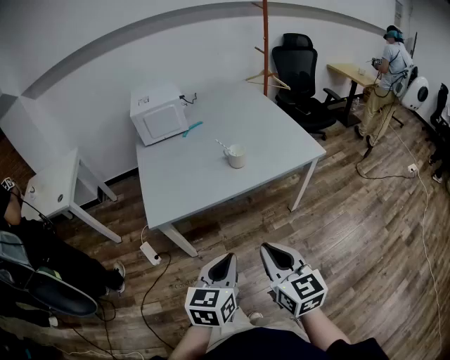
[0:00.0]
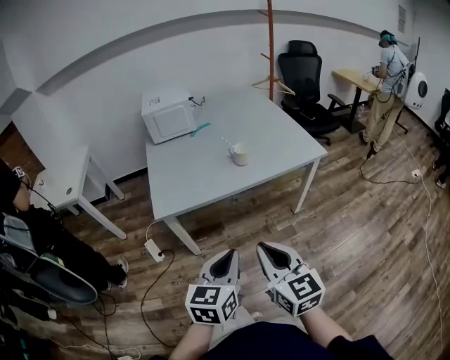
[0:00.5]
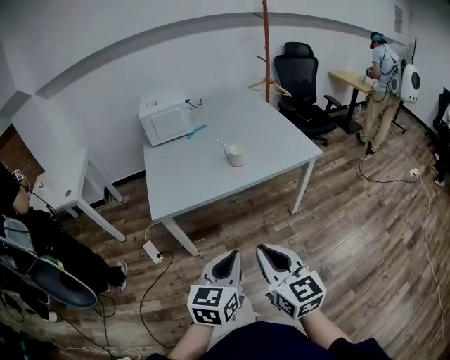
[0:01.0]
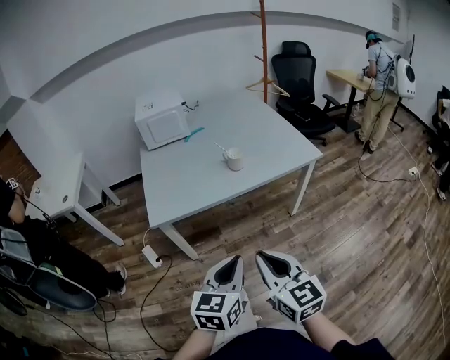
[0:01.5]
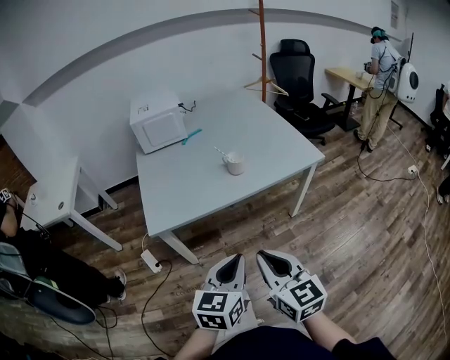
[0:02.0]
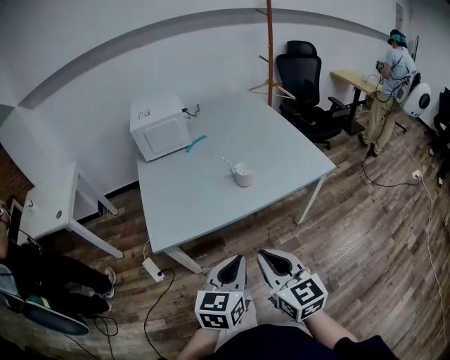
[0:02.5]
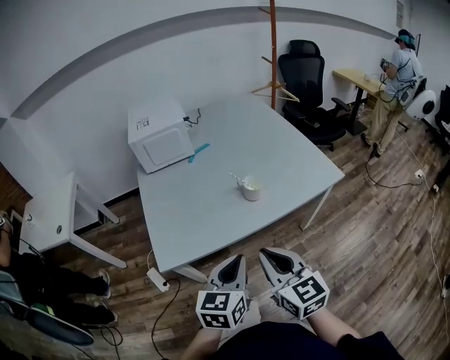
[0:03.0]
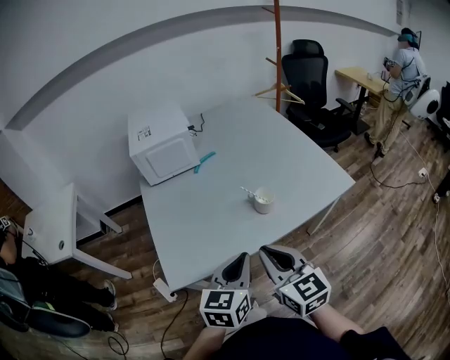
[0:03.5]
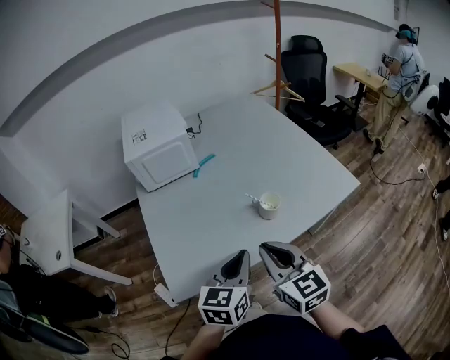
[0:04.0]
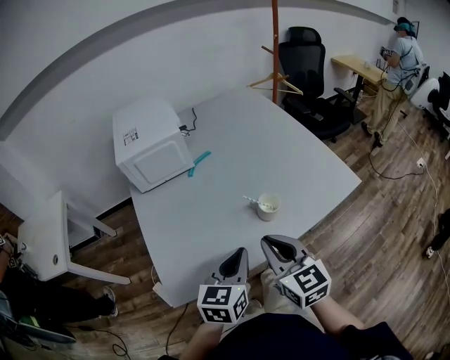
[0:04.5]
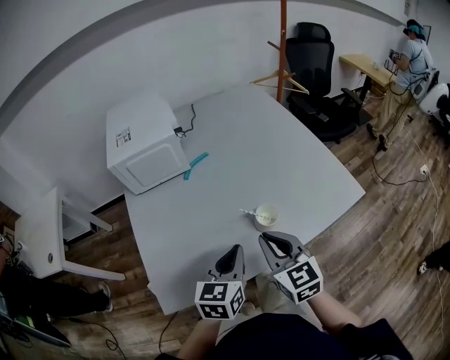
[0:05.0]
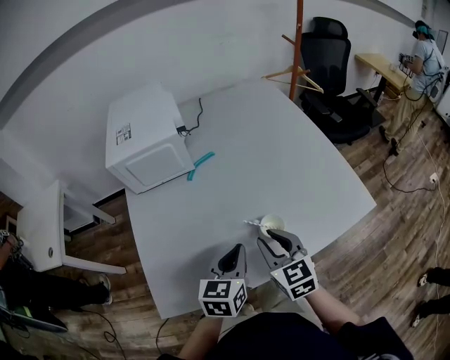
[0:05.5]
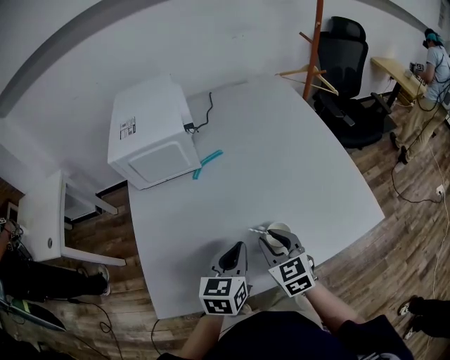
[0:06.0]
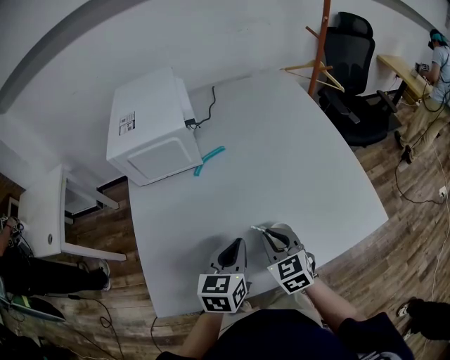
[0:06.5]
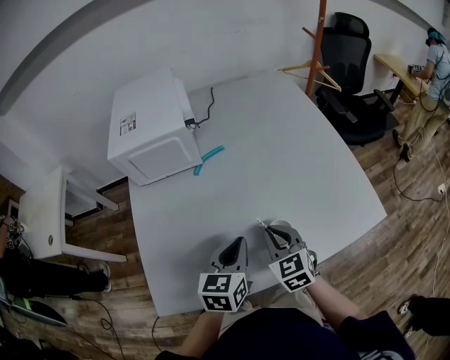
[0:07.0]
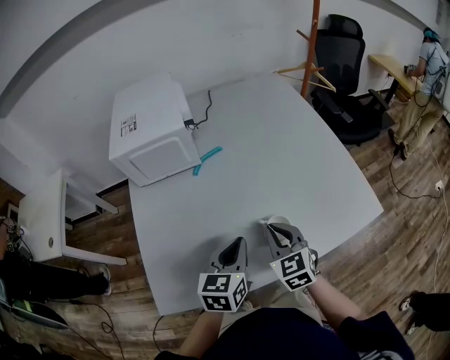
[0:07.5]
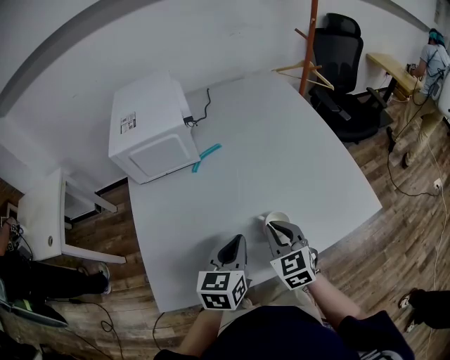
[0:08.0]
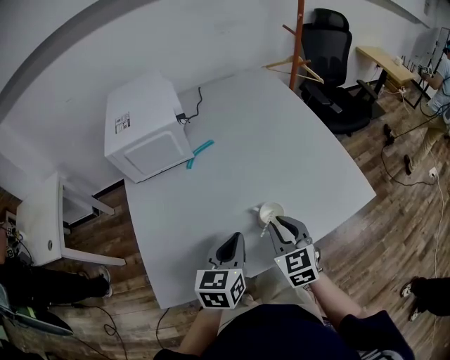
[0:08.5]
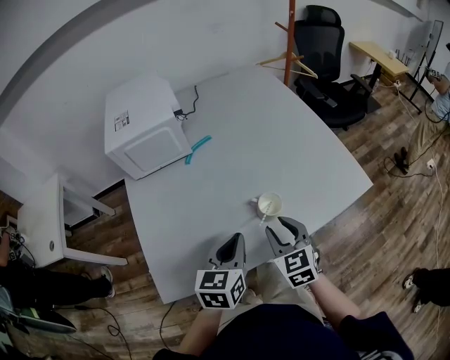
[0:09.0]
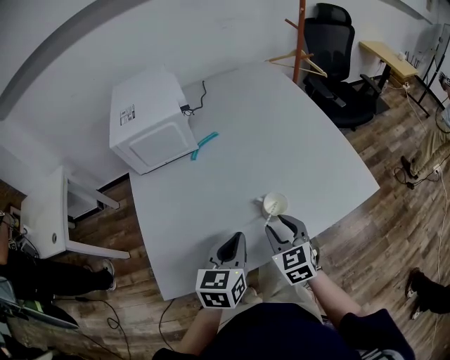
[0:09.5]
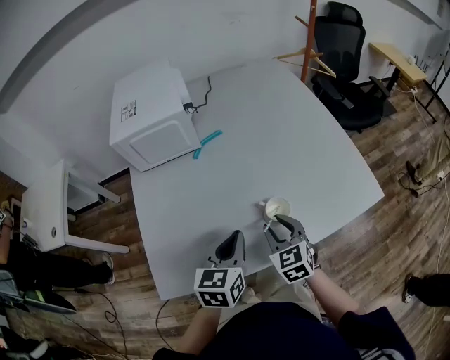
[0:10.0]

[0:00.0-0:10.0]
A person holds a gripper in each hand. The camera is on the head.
0:02.0 to 0:04.0: The grippers both shift forward by some 30 cm.
0:04.0 to 0:06.0: Both grippers travel together forward and downward, approximately 20 cm. The right gripper turns by approximately 20 degrees.
0:06.0 to 0:08.0: There are only small adjustments of the grippers.
0:08.0 to 0:10.0: The right gripper opens up.

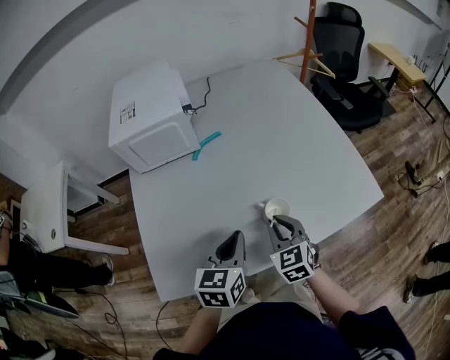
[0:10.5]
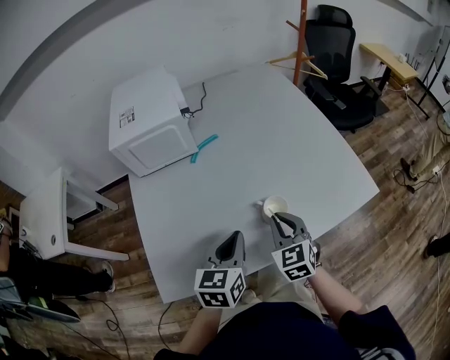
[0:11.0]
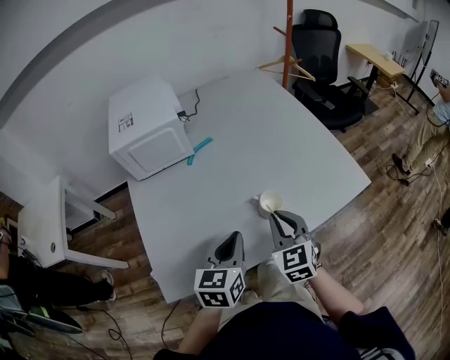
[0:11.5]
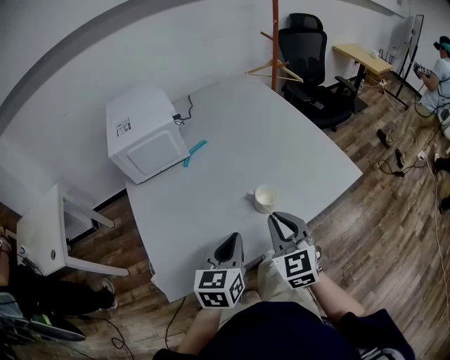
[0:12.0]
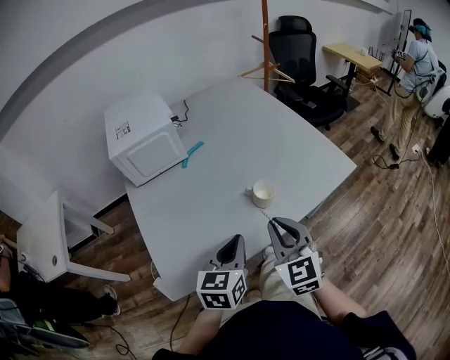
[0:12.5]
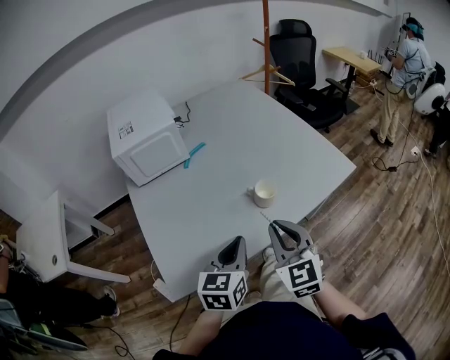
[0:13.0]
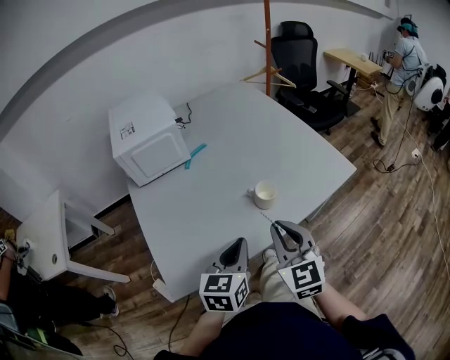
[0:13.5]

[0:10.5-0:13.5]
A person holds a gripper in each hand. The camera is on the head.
0:10.5 to 0:12.0: The left gripper moves backward, some 5 cm; the right gripper moves upward and backward, roughly 15 cm.
0:12.0 to 0:13.5: The right gripper heads backward, covering about 5 cm.

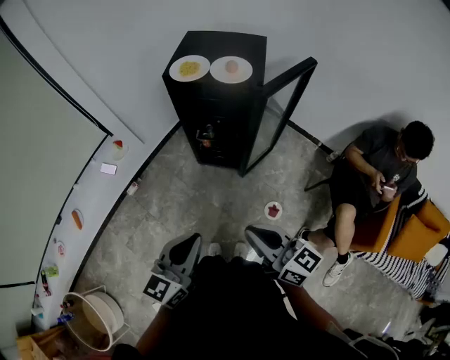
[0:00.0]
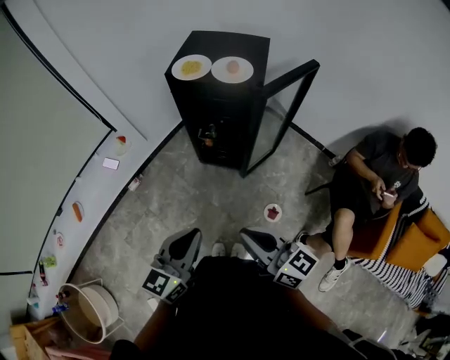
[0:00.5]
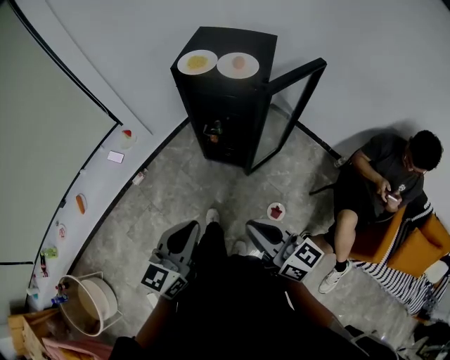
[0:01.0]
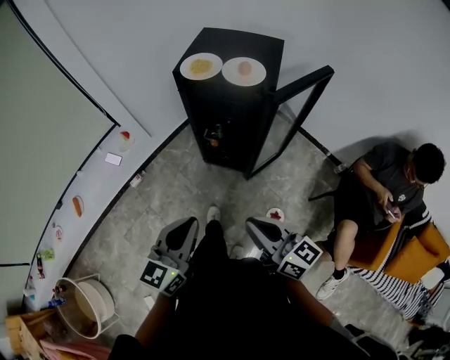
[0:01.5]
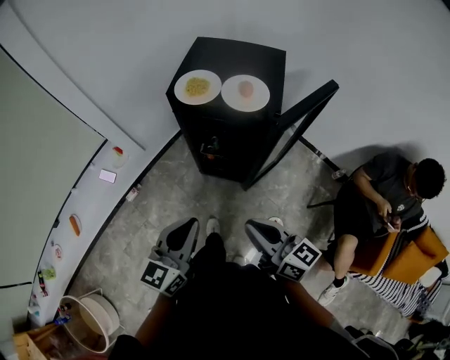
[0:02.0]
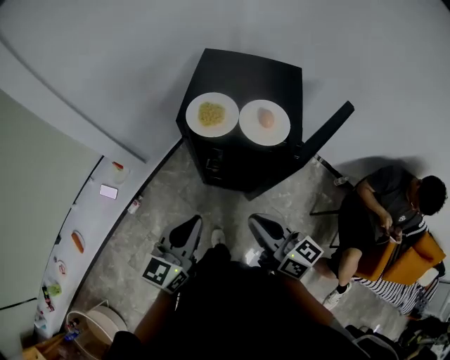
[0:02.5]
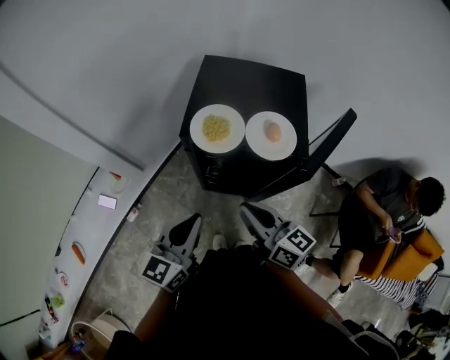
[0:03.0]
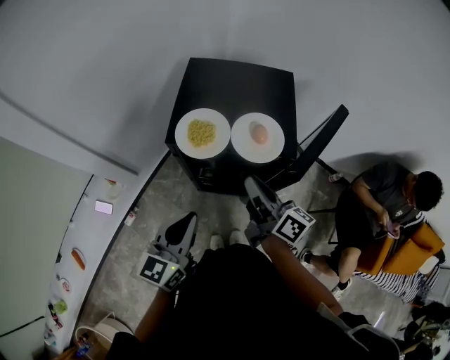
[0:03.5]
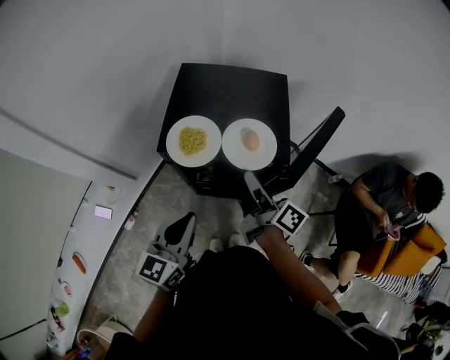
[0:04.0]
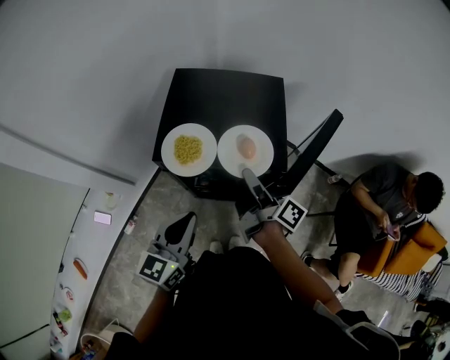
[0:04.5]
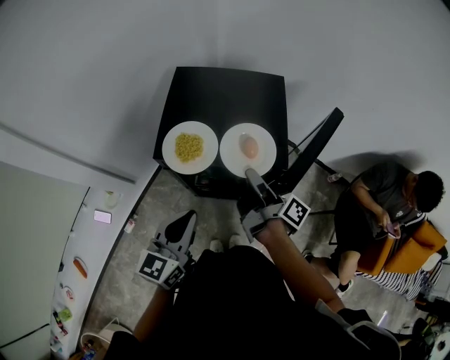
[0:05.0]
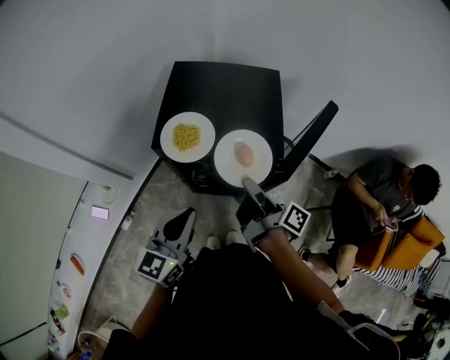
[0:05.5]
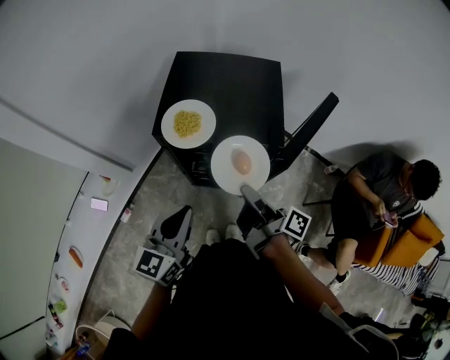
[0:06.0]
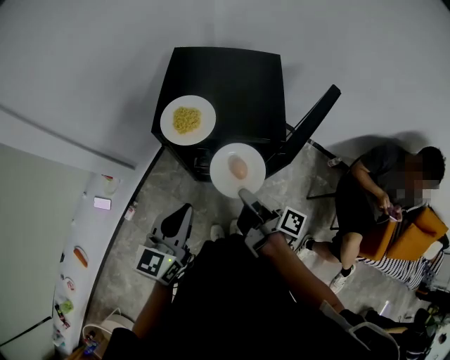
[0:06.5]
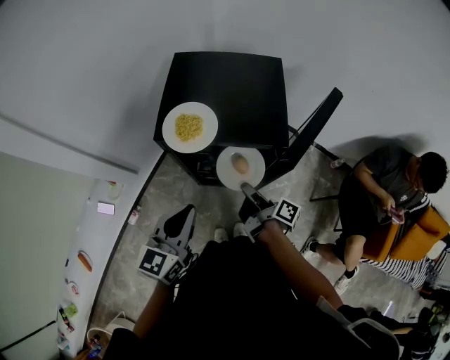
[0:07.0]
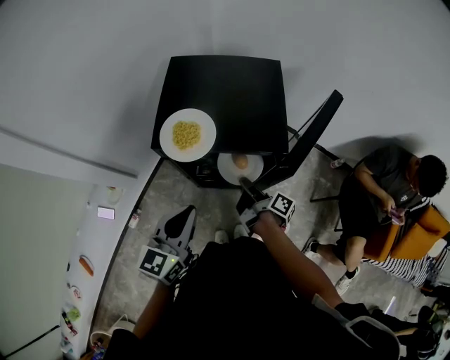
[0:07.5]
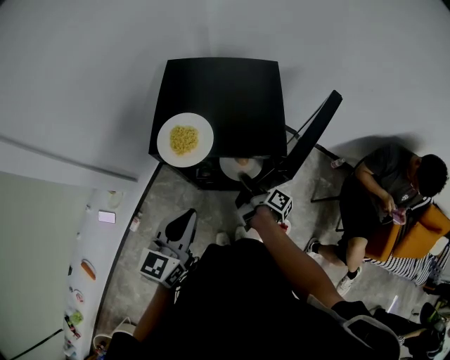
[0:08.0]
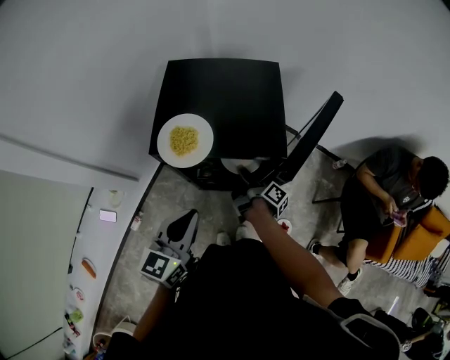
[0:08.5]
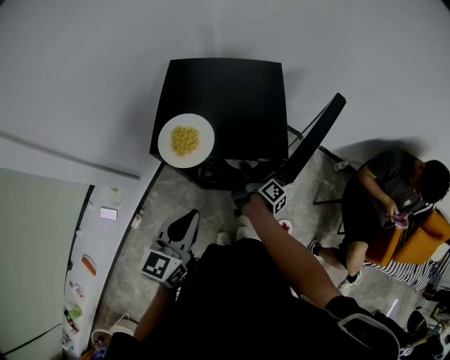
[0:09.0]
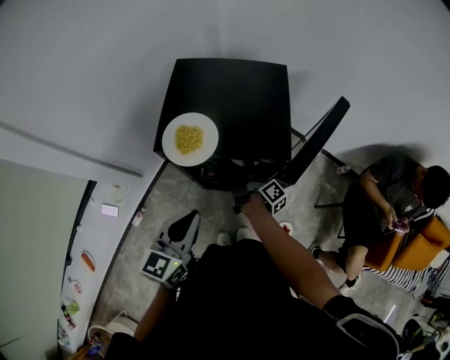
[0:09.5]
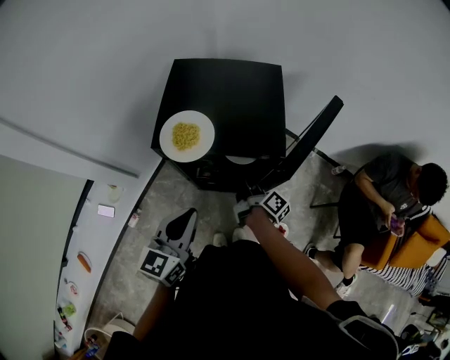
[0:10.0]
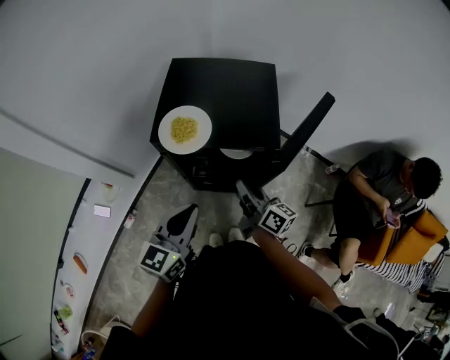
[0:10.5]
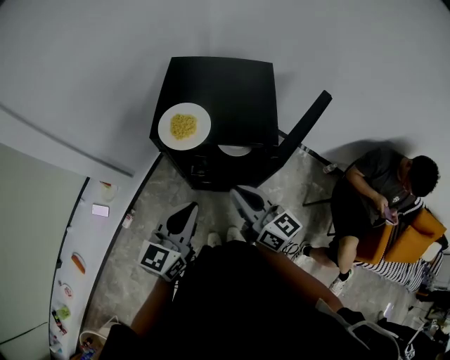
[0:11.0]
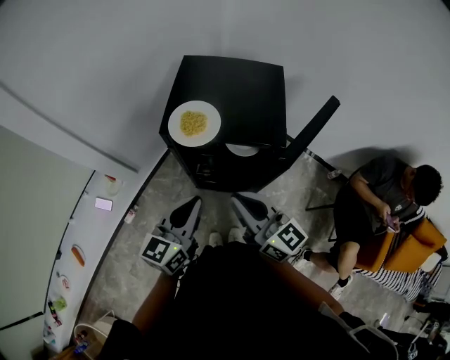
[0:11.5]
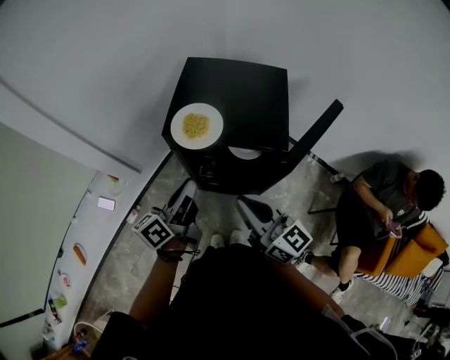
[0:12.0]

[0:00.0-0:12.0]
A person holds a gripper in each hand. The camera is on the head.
0:00.0 to 0:02.0: The grippers both shift forward by roughly 15 cm.
0:02.0 to 0:04.0: The two grippers go about 25 cm forward. The right gripper turns by about 50 degrees.
0:04.0 to 0:06.0: The right gripper goes some 10 cm backward, and turns by approximately 20 degrees.
0:06.0 to 0:08.0: The right gripper travels downward and forward by approximately 20 cm.
0:08.0 to 0:10.0: The grippers move only a little.
0:10.0 to 0:12.0: The left gripper rolls counterclockwise, seen from behind, by about 40 degrees. The right gripper is displaced upward and backward by some 25 cm, and rotates around the line of its fingers by about 60 degrees, counterclockwise from behind.

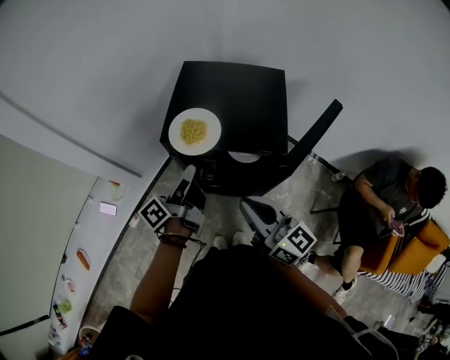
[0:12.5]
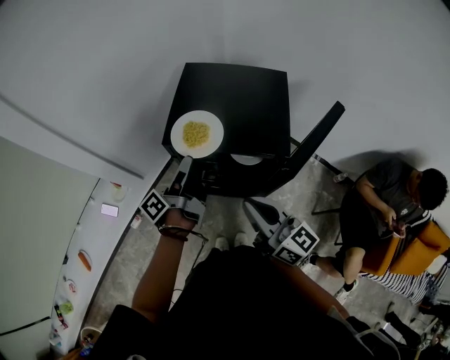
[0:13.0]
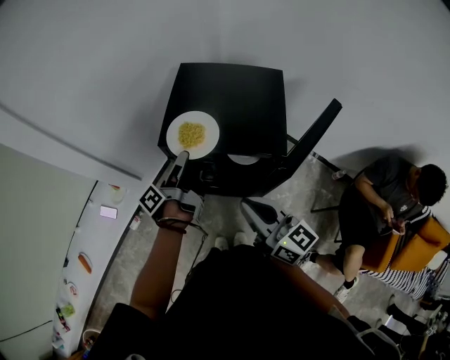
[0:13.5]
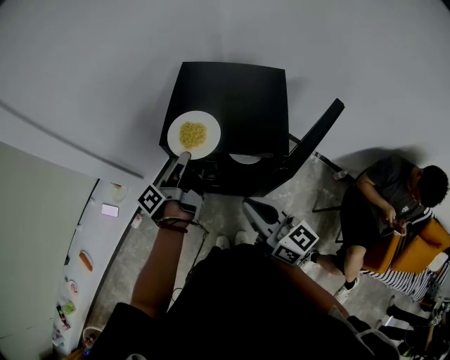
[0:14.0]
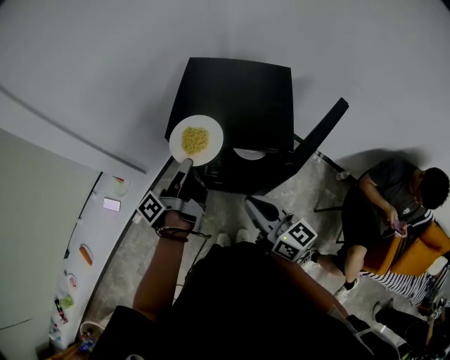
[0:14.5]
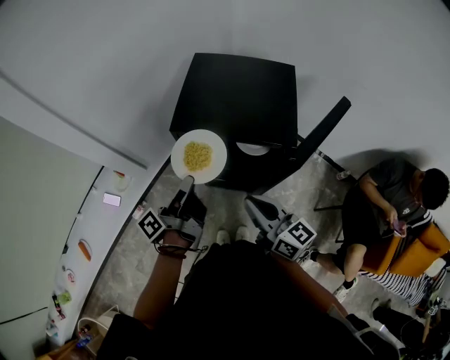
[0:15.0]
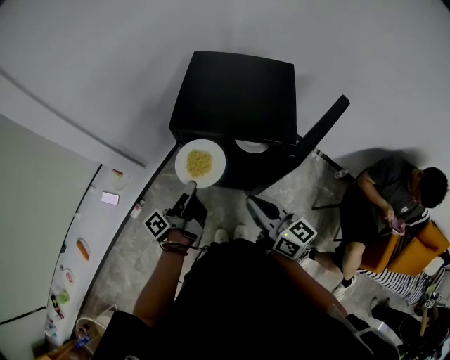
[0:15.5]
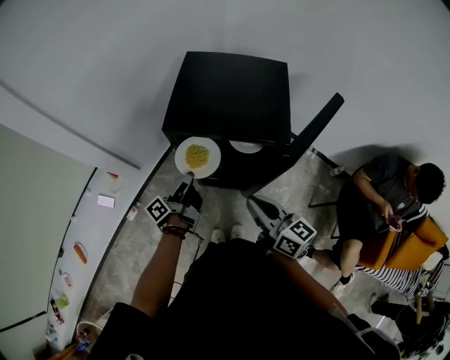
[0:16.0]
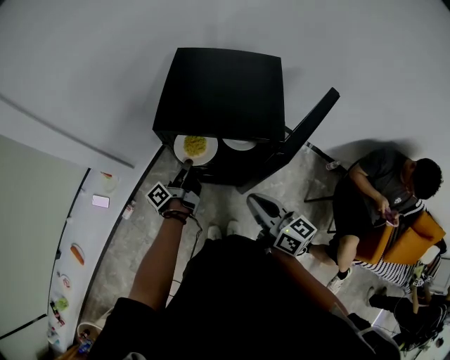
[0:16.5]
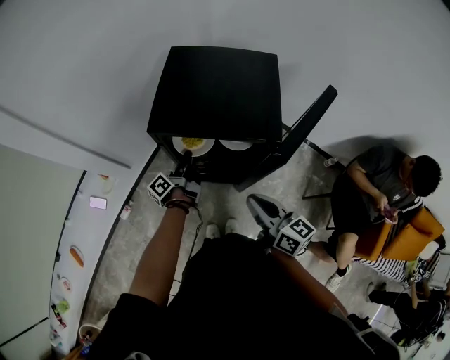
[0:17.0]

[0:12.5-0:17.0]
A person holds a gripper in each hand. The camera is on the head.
0:12.5 to 0:14.5: The left gripper closes its fingers.
0:14.5 to 0:17.0: The left gripper is displaced downward by about 20 cm, while the right gripper shifts roughly 5 cm downward.
